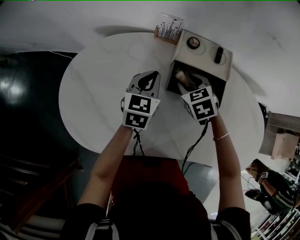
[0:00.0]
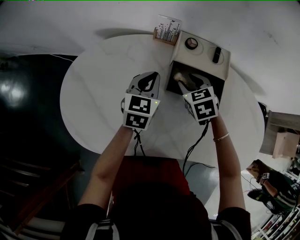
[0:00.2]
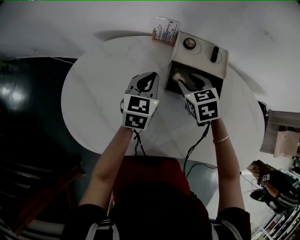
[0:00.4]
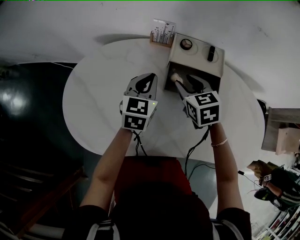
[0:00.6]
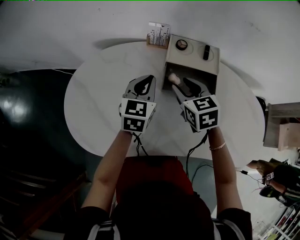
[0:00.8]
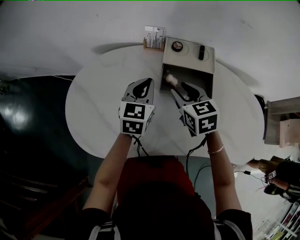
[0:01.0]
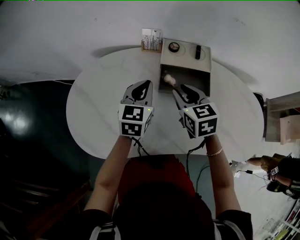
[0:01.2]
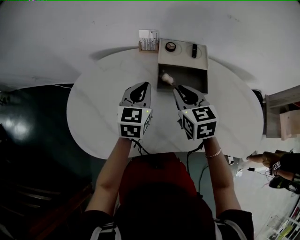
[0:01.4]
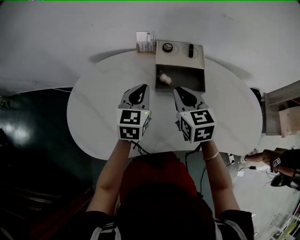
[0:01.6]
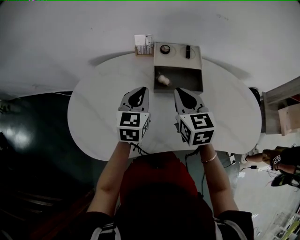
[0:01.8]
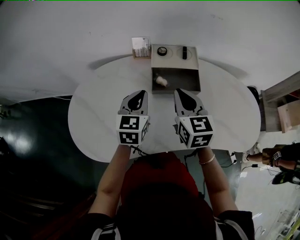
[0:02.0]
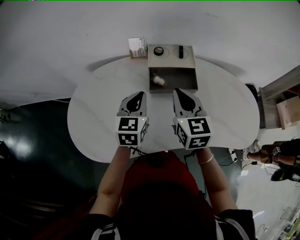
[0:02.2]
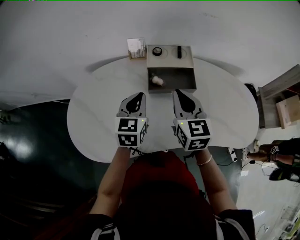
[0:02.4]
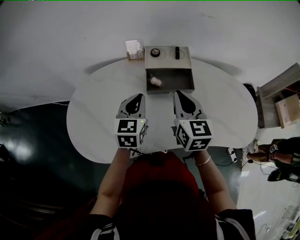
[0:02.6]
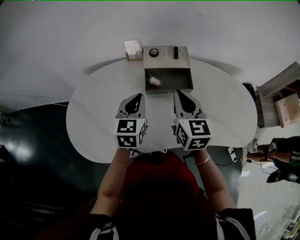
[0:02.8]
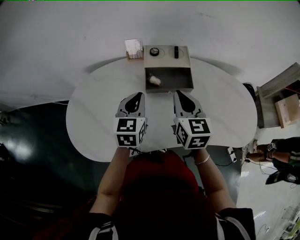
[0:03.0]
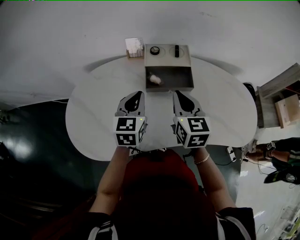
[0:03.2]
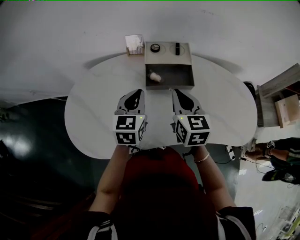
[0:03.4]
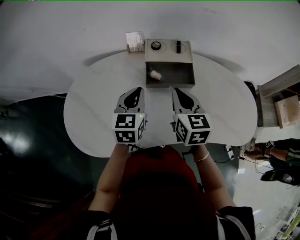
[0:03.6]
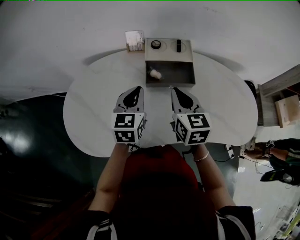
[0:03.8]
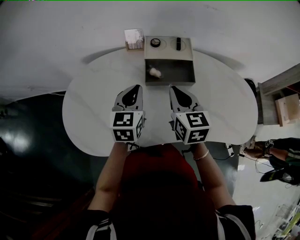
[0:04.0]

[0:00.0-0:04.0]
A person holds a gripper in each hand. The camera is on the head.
0:00.0 to 0:01.4: The right gripper shifts roughly 15 cm upward and backward, rotates approximately 30 degrees, and closes up. Meanwhile the left gripper travels upward and backward by approximately 10 cm.
0:01.4 to 0:02.6: The left gripper shifts by approximately 5 cm. The right gripper goes approximately 5 cm upward, and changes its angle by some 20 degrees.
0:02.6 to 0:04.0: The grippers make only small movements.

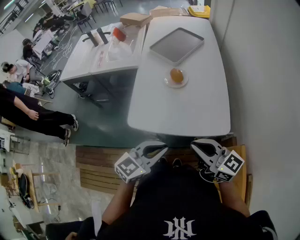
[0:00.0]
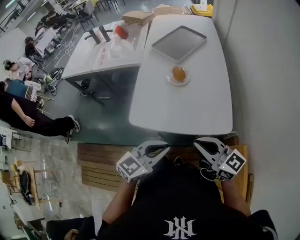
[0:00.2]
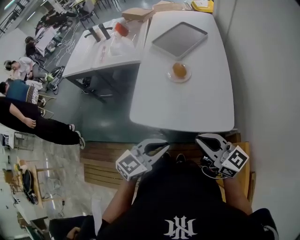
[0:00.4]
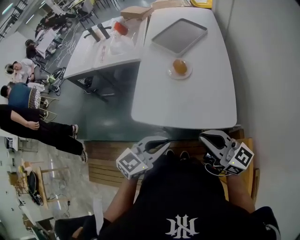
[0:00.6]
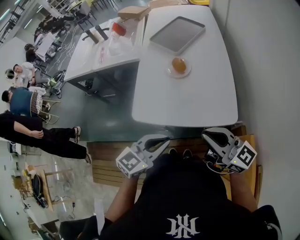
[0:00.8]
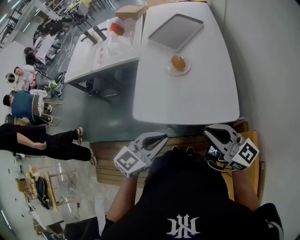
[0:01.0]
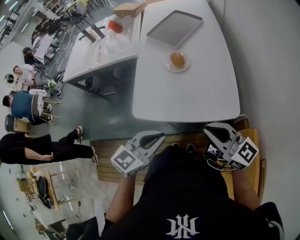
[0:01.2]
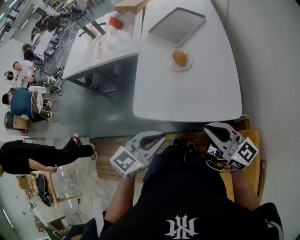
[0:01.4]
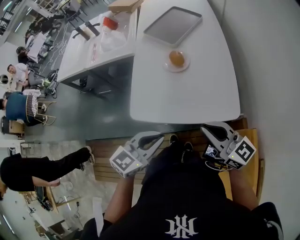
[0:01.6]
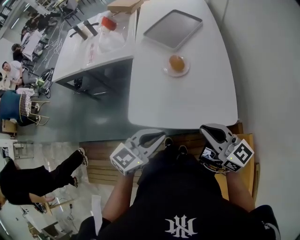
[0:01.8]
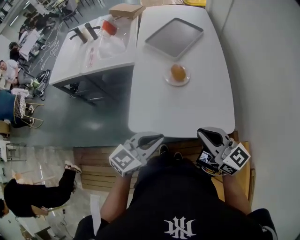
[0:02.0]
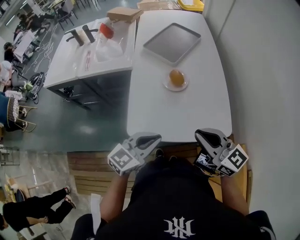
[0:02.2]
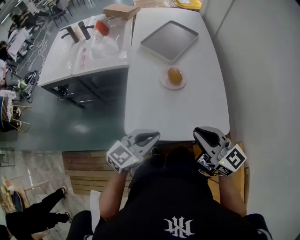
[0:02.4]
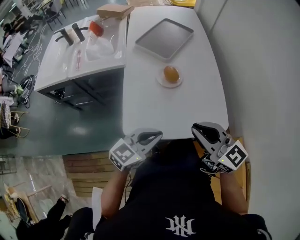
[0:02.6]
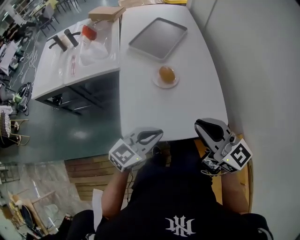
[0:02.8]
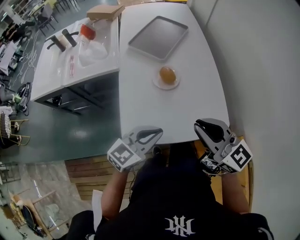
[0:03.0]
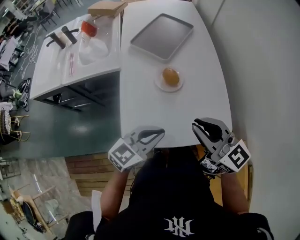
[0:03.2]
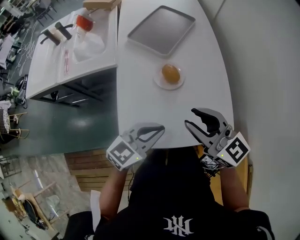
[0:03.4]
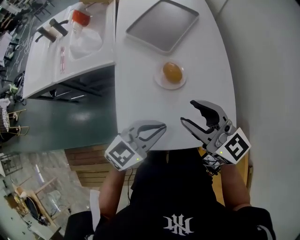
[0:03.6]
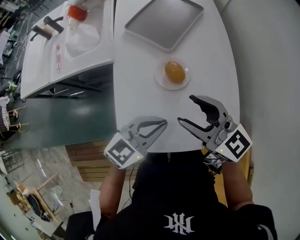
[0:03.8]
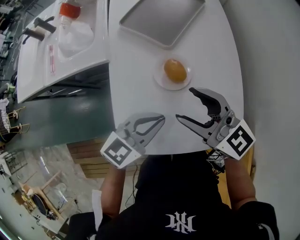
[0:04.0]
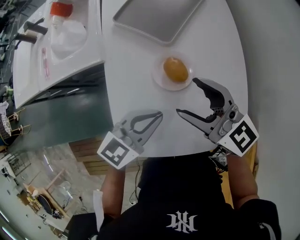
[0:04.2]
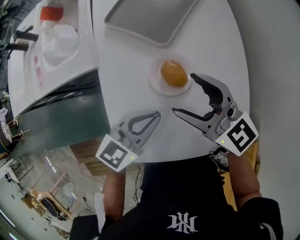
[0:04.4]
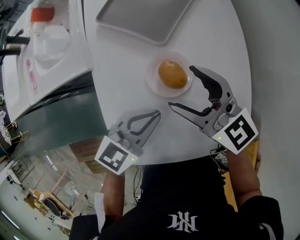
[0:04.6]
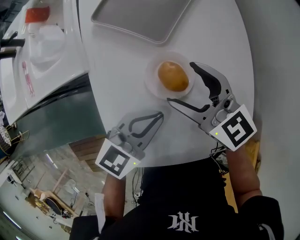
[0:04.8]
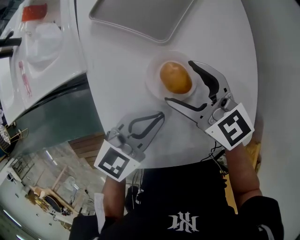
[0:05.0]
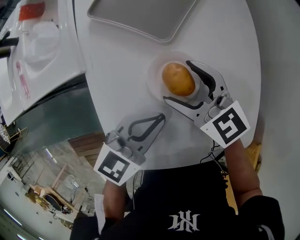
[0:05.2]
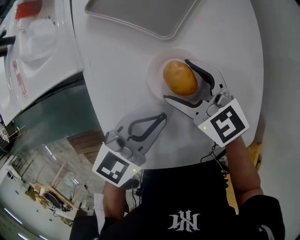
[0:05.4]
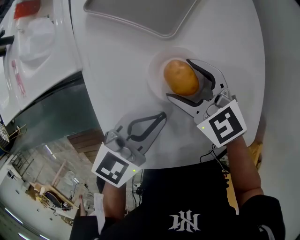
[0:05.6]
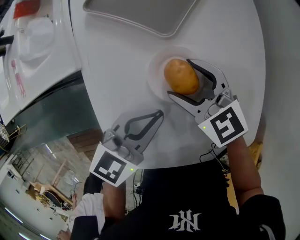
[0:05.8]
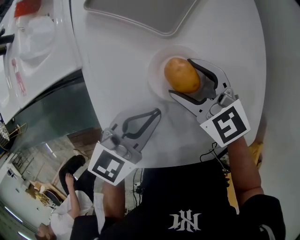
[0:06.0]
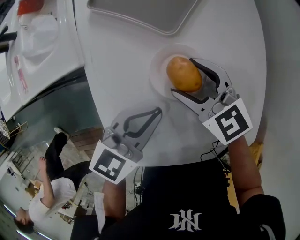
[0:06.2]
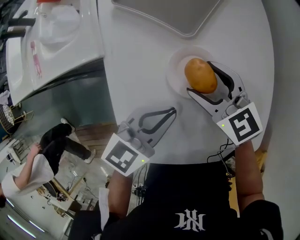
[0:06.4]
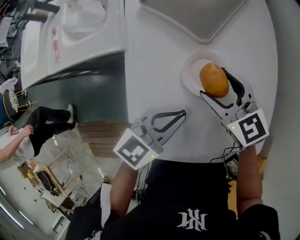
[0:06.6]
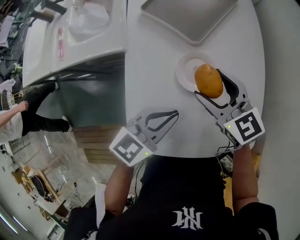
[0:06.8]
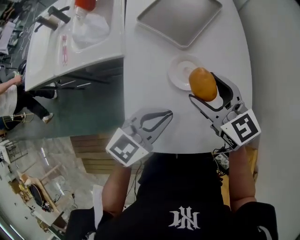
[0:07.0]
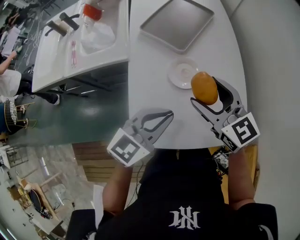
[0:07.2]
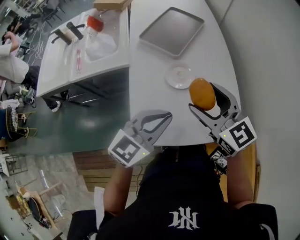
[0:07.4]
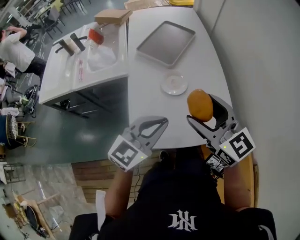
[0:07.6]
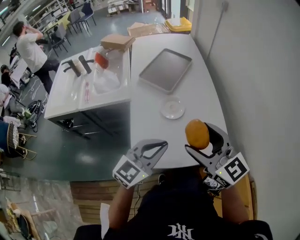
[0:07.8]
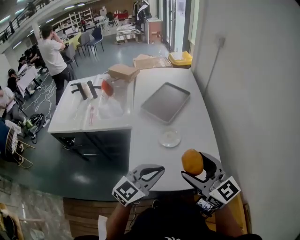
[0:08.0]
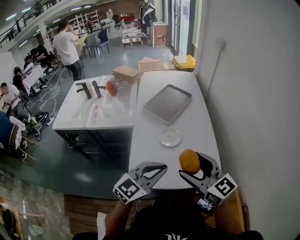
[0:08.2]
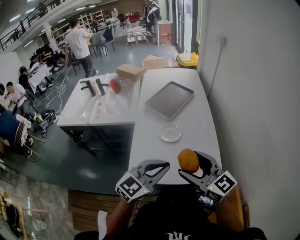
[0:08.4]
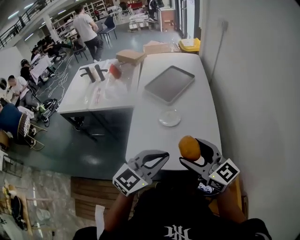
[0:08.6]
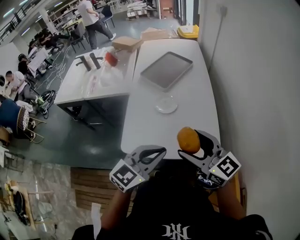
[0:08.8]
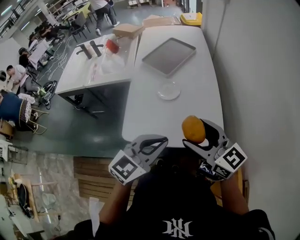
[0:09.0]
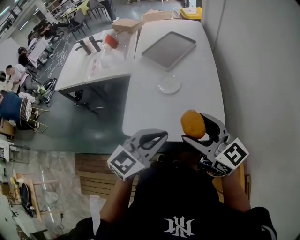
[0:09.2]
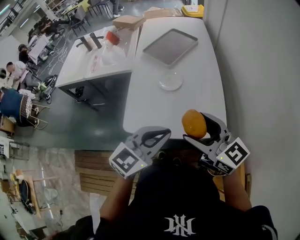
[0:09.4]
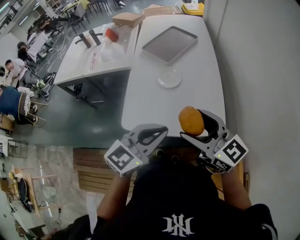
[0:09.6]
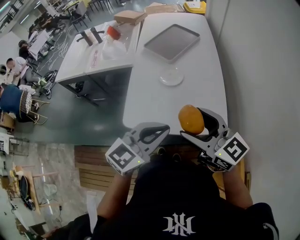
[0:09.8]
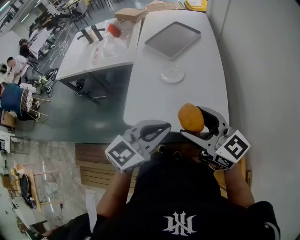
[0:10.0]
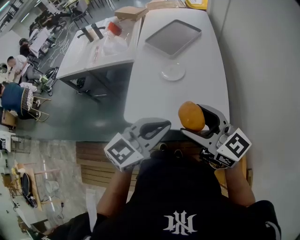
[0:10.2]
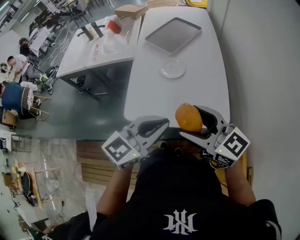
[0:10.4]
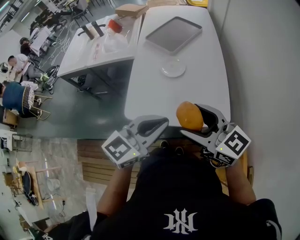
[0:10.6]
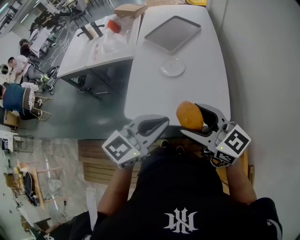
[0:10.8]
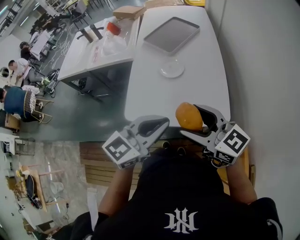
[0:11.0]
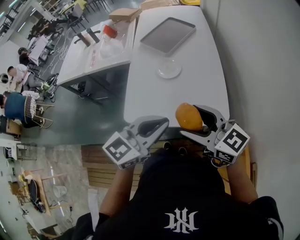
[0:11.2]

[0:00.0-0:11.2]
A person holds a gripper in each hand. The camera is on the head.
0:00.0 to 0:01.6: The grippers make only small movements.
0:01.6 to 0:03.2: The left gripper goes about 15 cm forward, while the right gripper is displaced forward and to the left by roughly 15 cm.
0:03.2 to 0:04.8: Both grippers travel together forward and downward, roughly 25 cm. The right gripper opens.
0:04.8 to 0:06.4: The right gripper goes about 5 cm downward.
0:06.4 to 0:08.0: Both grippers travel together upward and backward, some 40 cm. The right gripper swivels roughly 30 degrees; the left gripper swivels some 20 degrees.
0:08.0 to 0:09.6: The left gripper moves to the right and backward, about 15 cm; the right gripper moves to the right, backward and downward, some 10 cm.
0:09.6 to 0:11.2: The grippers move only a little.

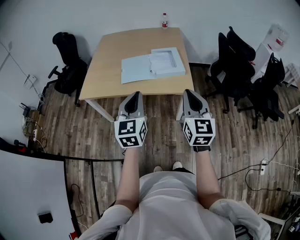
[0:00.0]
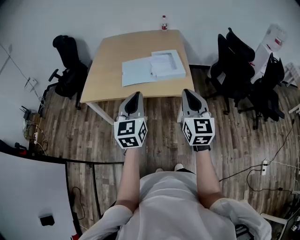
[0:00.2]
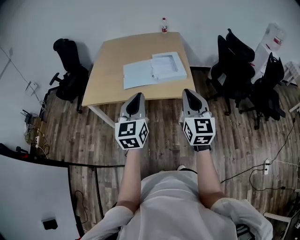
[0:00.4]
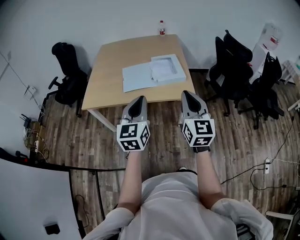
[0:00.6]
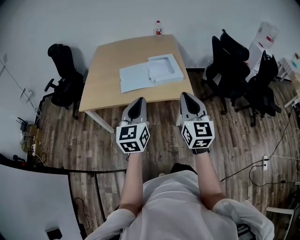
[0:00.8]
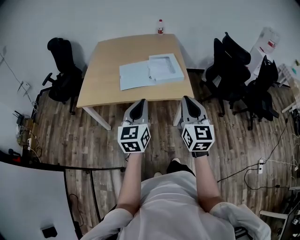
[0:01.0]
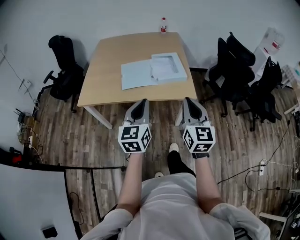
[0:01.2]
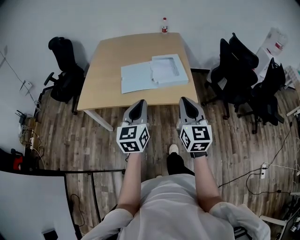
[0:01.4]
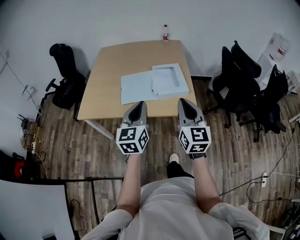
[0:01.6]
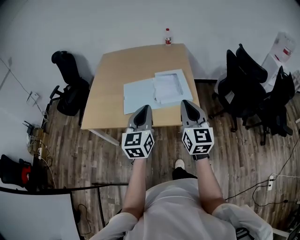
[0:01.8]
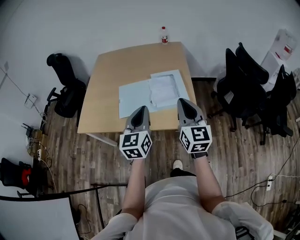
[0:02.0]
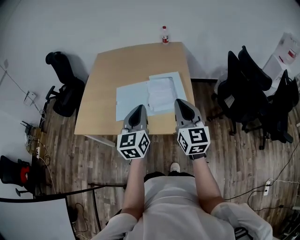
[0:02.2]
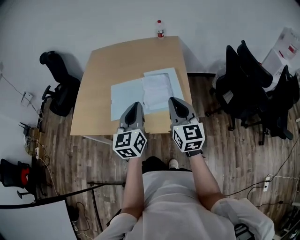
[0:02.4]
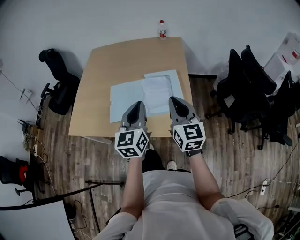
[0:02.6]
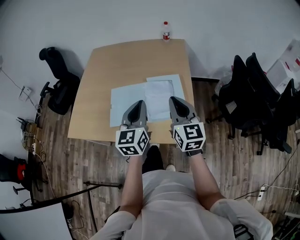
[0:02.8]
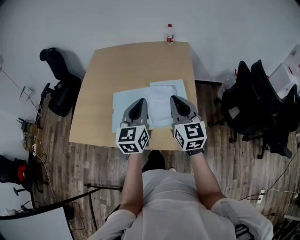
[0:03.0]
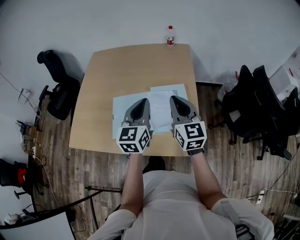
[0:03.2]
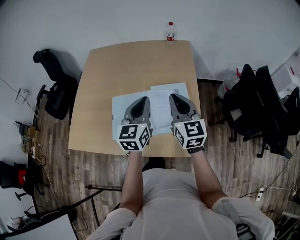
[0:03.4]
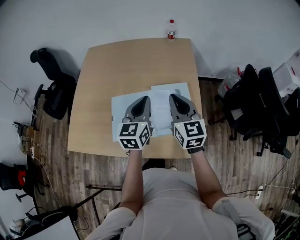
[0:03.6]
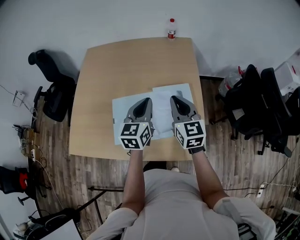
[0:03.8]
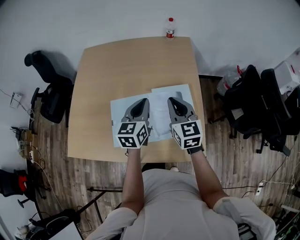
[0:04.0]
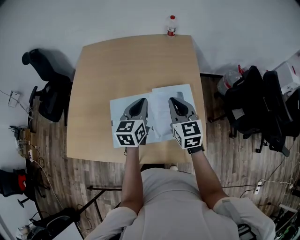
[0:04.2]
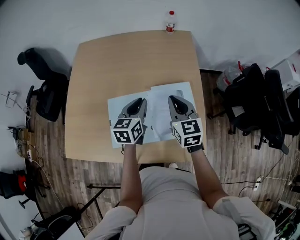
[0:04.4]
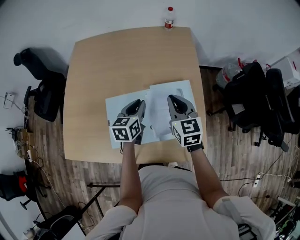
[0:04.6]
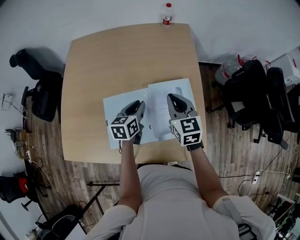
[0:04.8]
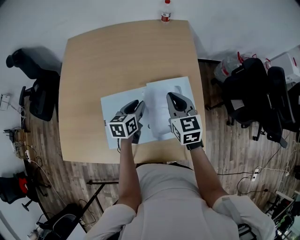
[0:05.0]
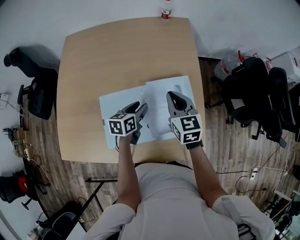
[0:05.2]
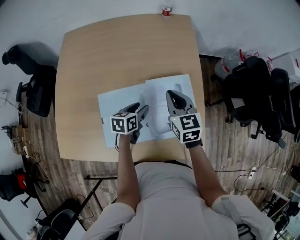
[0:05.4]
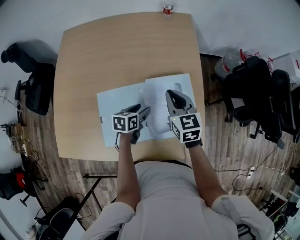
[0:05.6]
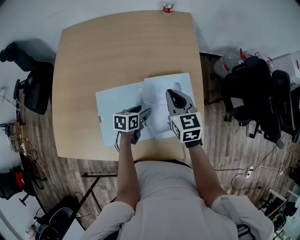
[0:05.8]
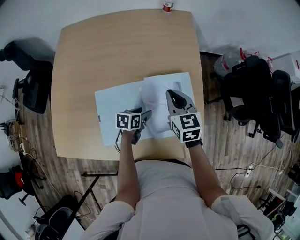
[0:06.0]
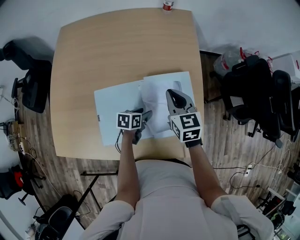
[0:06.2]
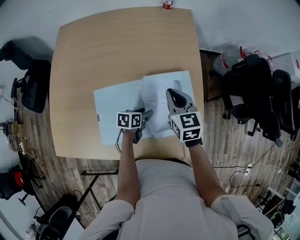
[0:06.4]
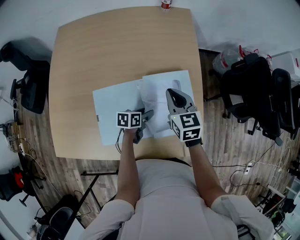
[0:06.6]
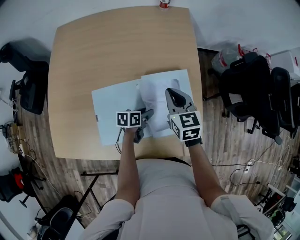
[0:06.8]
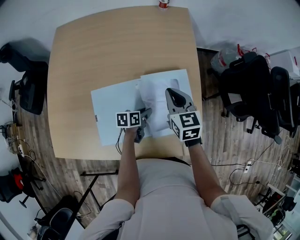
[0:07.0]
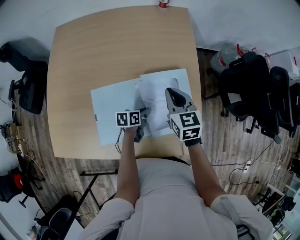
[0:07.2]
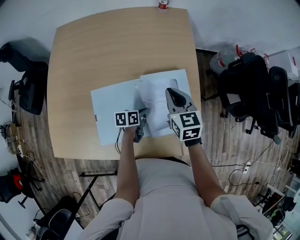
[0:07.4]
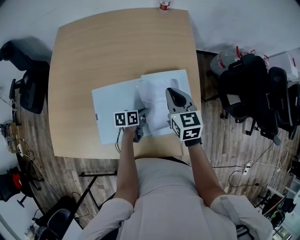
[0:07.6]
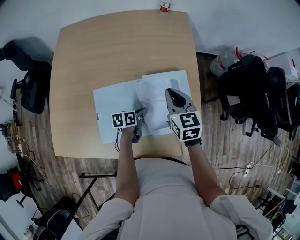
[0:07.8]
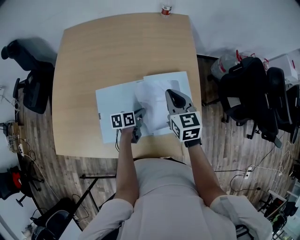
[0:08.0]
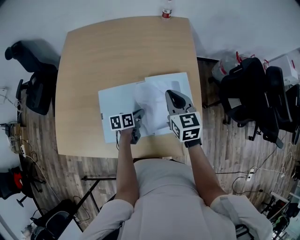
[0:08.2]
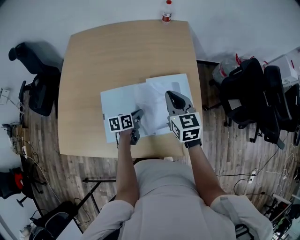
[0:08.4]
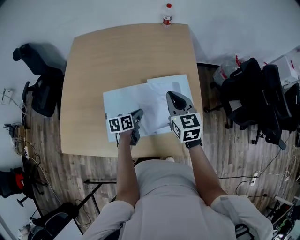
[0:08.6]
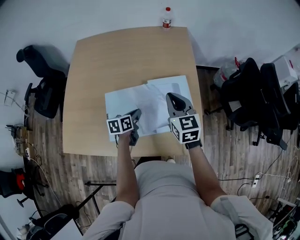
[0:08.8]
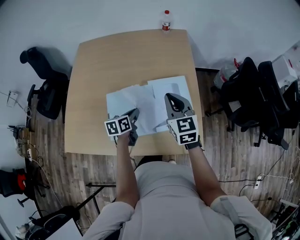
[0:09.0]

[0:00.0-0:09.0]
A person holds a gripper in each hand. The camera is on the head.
0:00.0 to 0:01.6: Both grippers move forward, some 10 cm.
0:01.6 to 0:03.0: The two grippers go about 30 cm forward.
0:03.0 to 0:04.4: Both grippers travel together forward and downward, roughly 20 cm. The left gripper turns by some 20 degrees.
0:04.4 to 0:06.0: The left gripper is displaced downward by some 20 cm, turns by roughly 40 degrees, and opens up; the right gripper travels downward by about 10 cm.
0:06.0 to 0:07.6: The left gripper closes its fingers.
0:07.6 to 0:09.0: The right gripper heads upward and backward, covering roughly 10 cm; the left gripper shifts some 15 cm upward and to the left, and rotates roughly 20 degrees.
